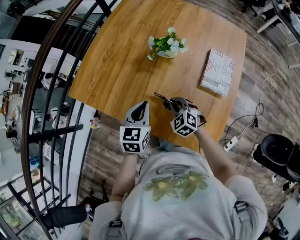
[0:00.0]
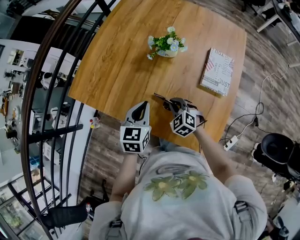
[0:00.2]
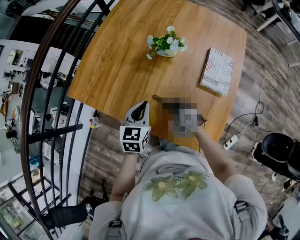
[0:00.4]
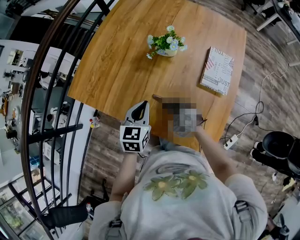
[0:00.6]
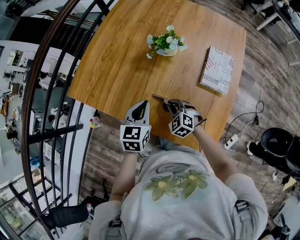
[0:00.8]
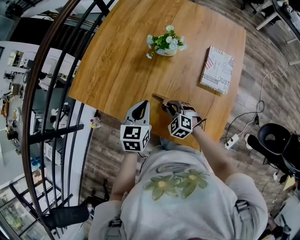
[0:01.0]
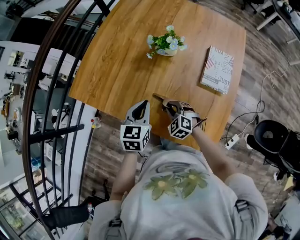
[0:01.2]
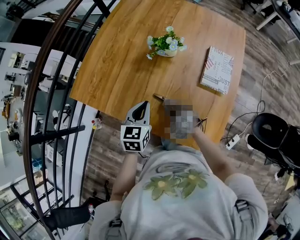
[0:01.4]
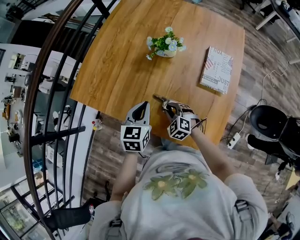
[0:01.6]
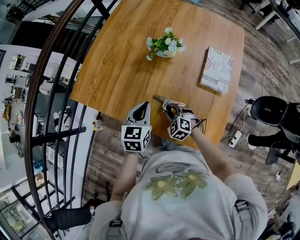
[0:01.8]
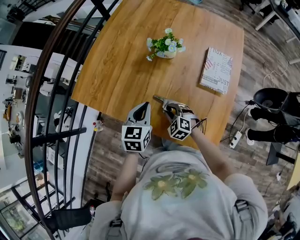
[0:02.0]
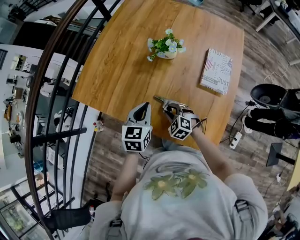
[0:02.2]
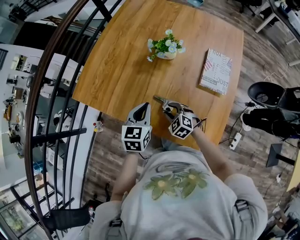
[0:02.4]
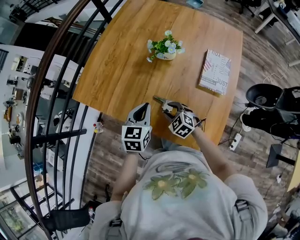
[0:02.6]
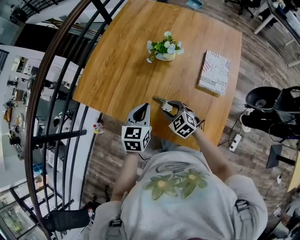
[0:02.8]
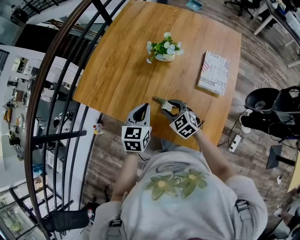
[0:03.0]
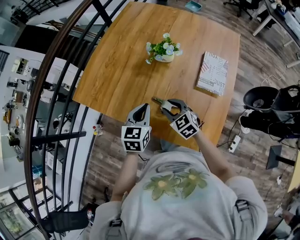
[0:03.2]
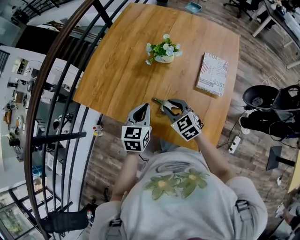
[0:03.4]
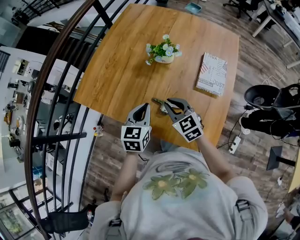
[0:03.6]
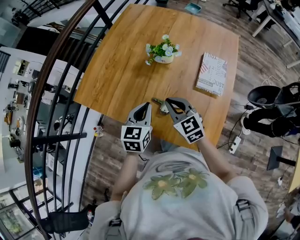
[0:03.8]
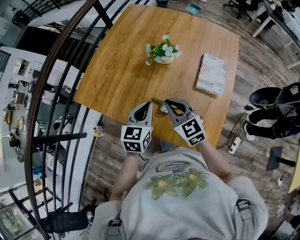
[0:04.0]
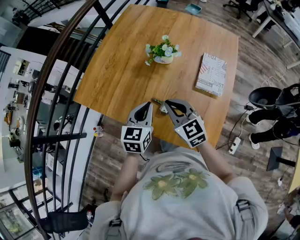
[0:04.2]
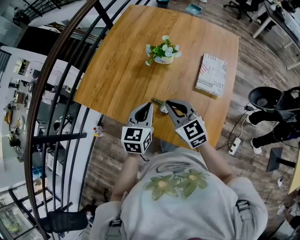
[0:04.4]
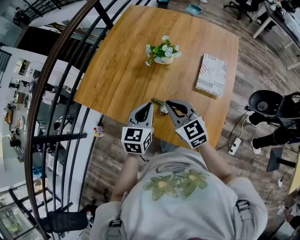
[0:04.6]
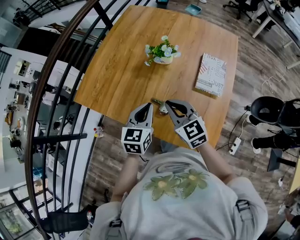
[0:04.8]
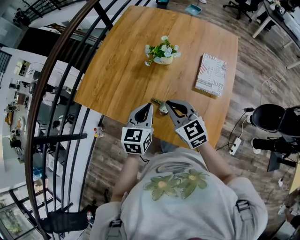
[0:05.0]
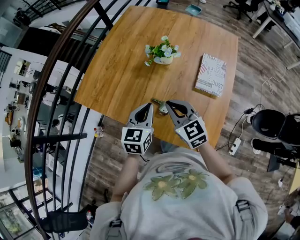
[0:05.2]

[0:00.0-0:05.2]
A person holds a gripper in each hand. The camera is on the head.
0:00.0 to 0:01.8: The right gripper shifts by about 5 cm, and opens up.
0:01.8 to 0:03.4: The right gripper moves upward, approximately 15 cm, and turns by about 30 degrees.
0:03.4 to 0:05.2: The right gripper shifts about 10 cm upward, and closes its fingers.

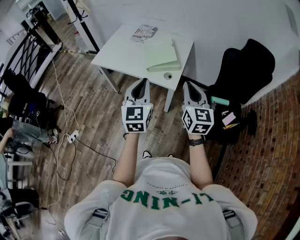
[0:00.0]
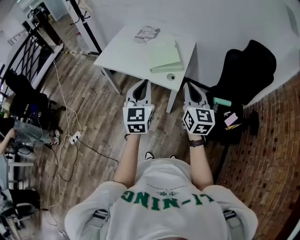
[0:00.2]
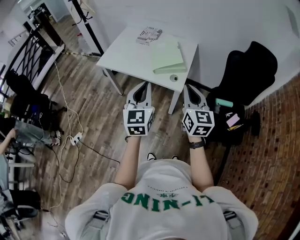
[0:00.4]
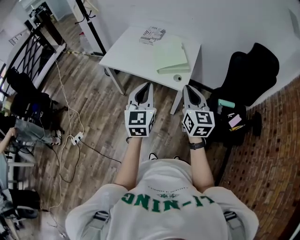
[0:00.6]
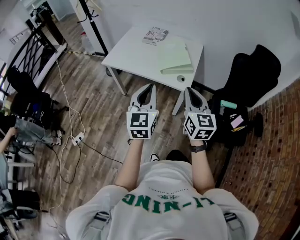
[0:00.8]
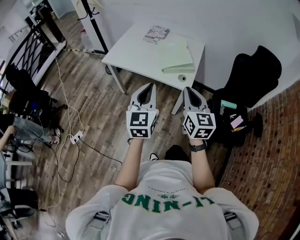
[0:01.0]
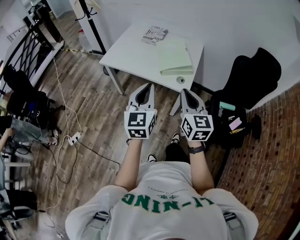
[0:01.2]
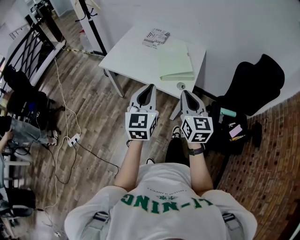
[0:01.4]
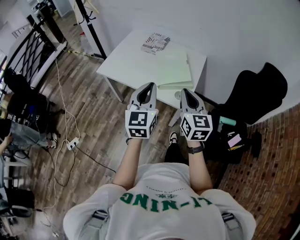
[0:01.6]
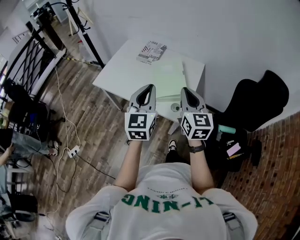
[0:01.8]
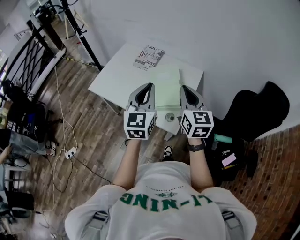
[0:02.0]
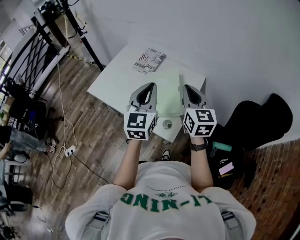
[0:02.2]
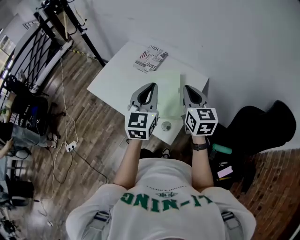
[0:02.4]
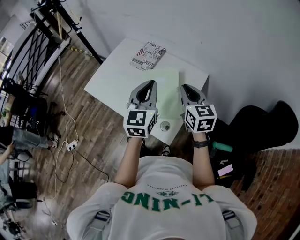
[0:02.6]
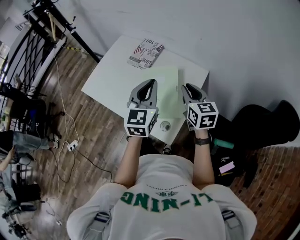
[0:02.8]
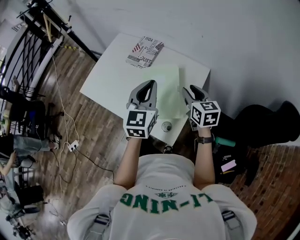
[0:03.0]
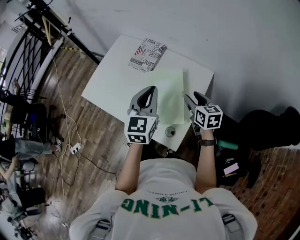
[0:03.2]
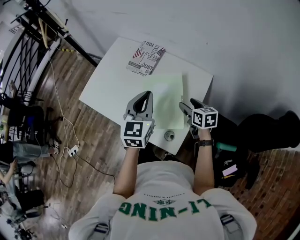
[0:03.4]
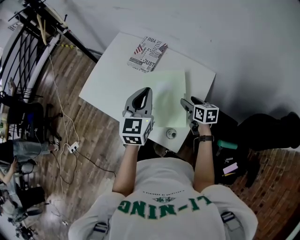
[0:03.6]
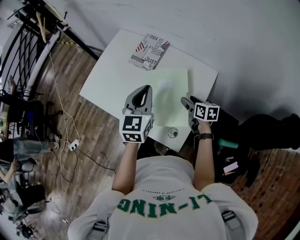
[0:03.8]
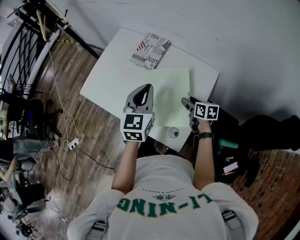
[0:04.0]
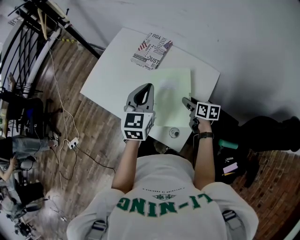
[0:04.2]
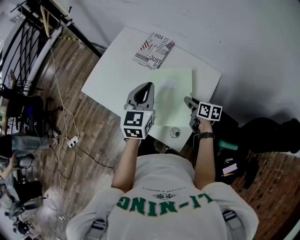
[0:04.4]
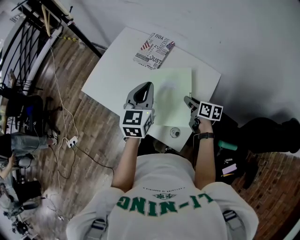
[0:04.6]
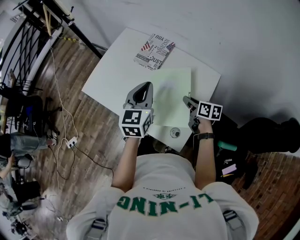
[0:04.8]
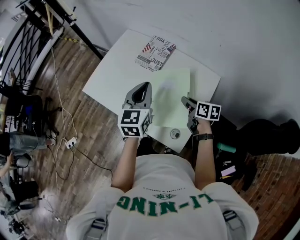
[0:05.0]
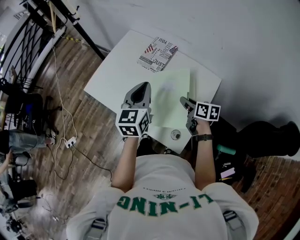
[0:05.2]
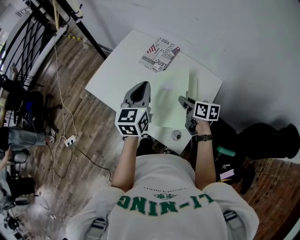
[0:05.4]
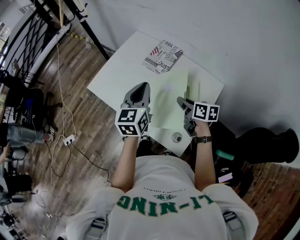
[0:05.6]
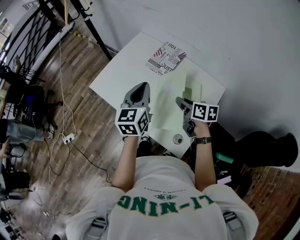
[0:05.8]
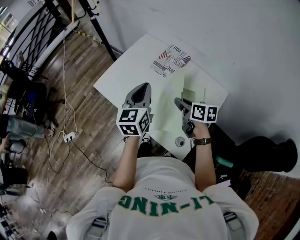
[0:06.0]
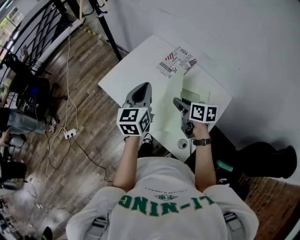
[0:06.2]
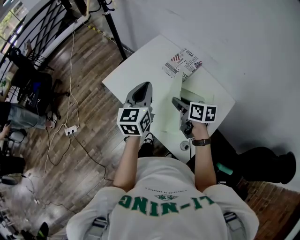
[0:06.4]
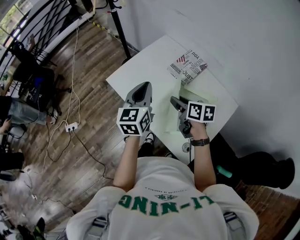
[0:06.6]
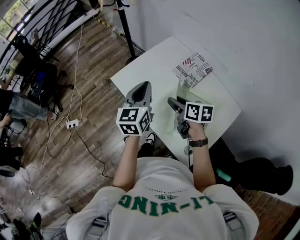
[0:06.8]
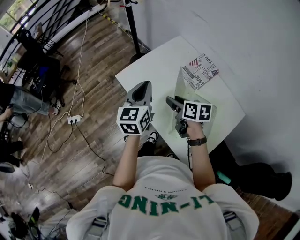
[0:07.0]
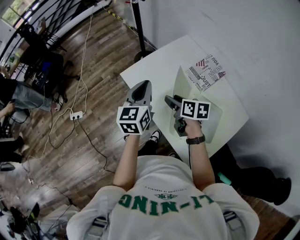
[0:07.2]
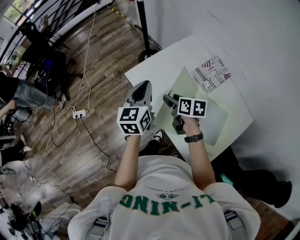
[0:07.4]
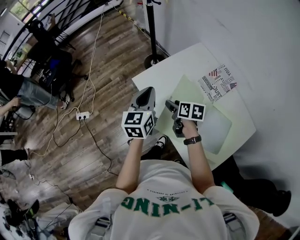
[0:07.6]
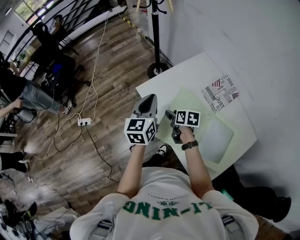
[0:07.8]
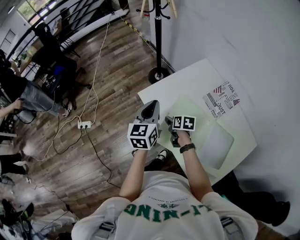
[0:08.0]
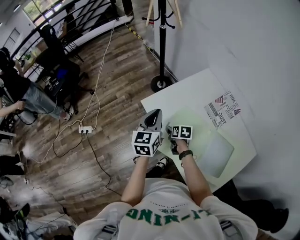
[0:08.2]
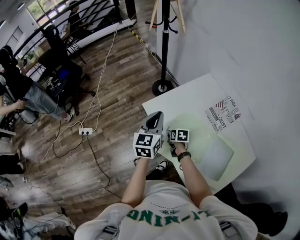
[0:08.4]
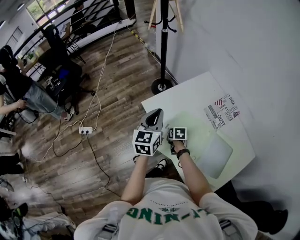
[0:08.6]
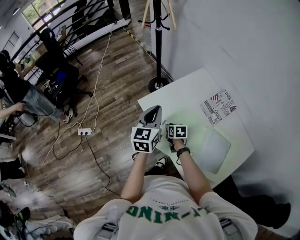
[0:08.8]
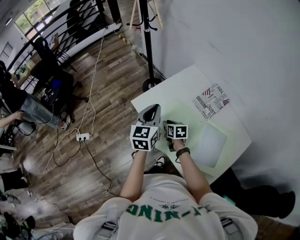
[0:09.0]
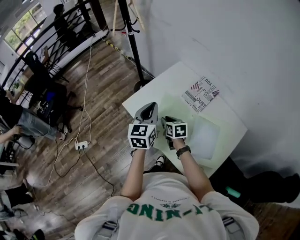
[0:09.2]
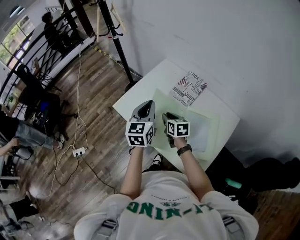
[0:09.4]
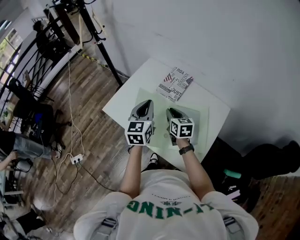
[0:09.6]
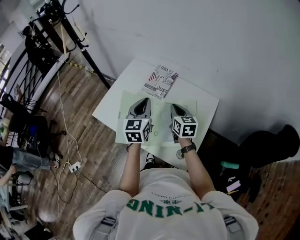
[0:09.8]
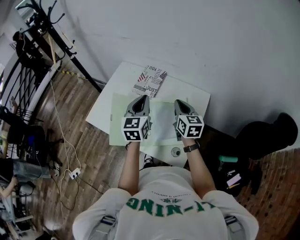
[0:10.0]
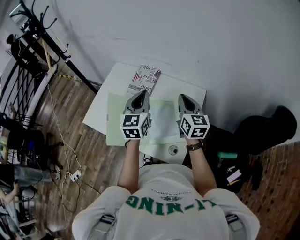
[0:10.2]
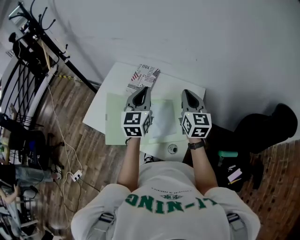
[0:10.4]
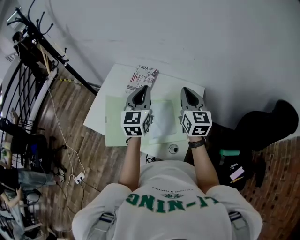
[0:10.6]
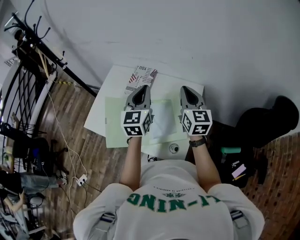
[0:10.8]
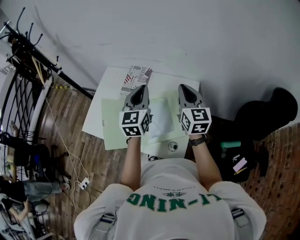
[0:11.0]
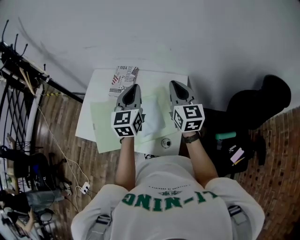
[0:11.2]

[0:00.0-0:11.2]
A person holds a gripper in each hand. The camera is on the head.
0:00.0 to 0:01.6: The two grippers go about 15 cm forward and to the left.
0:01.6 to 0:03.2: The right gripper moves forward, to the right and downward, some 40 cm, changes its angle by approximately 30 degrees, and opens its fingers. The left gripper shifts about 35 cm forward and to the right.
0:03.2 to 0:04.8: The left gripper shifts roughly 10 cm to the left and forward, while the right gripper is displaced downward and to the left by approximately 10 cm, turns by roughly 30 degrees, and closes.
0:04.8 to 0:06.4: The left gripper goes roughly 15 cm to the left; the right gripper goes roughly 20 cm to the left and upward.
0:06.4 to 0:08.0: The left gripper heads to the left, forward and downward, covering approximately 20 cm, while the right gripper travels to the left, downward and forward by some 30 cm, and turns by some 20 degrees.
0:08.0 to 0:09.6: The left gripper shifts by some 25 cm, and turns by roughly 20 degrees. Meanwhile the right gripper changes place by roughly 30 cm, turns by roughly 40 degrees, and closes up.
0:09.6 to 0:11.2: The right gripper moves to the right and upward, approximately 35 cm, and turns by about 40 degrees; the left gripper heads to the right, covering about 25 cm, and swivels roughly 20 degrees.

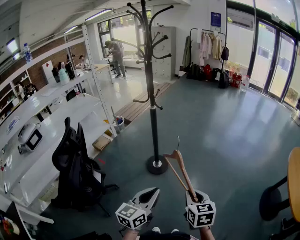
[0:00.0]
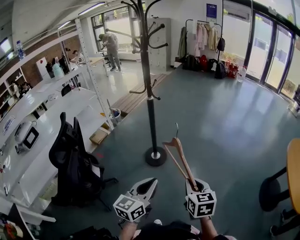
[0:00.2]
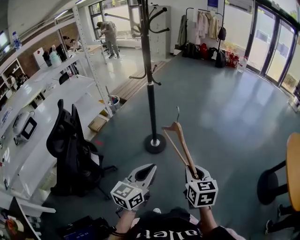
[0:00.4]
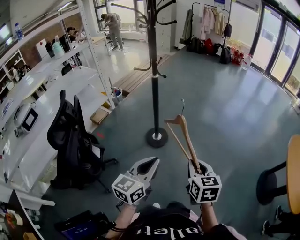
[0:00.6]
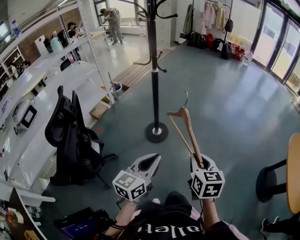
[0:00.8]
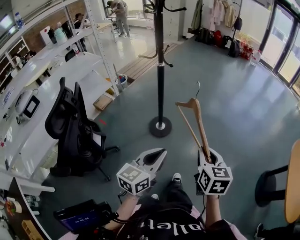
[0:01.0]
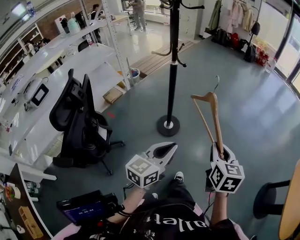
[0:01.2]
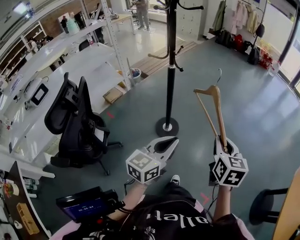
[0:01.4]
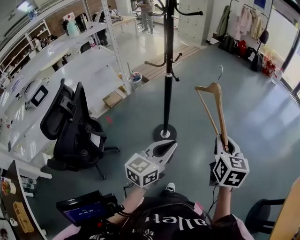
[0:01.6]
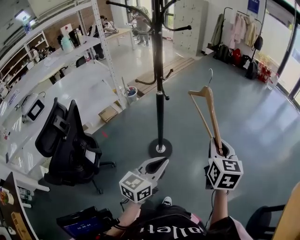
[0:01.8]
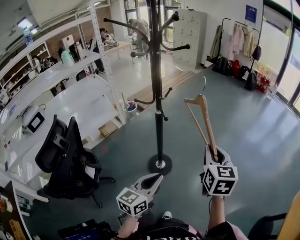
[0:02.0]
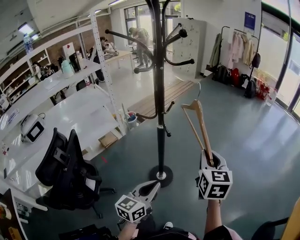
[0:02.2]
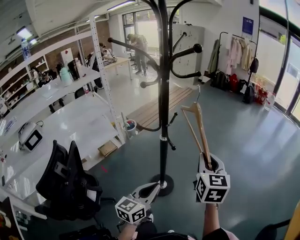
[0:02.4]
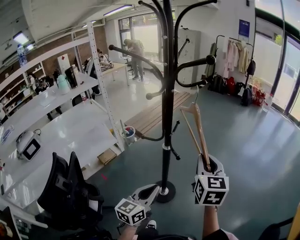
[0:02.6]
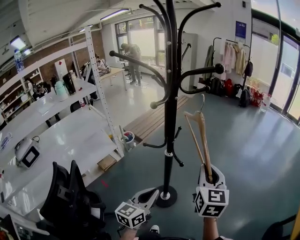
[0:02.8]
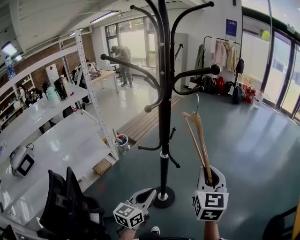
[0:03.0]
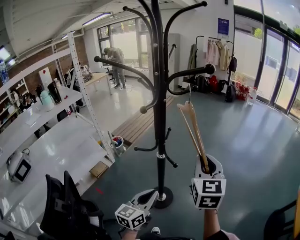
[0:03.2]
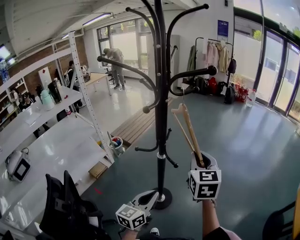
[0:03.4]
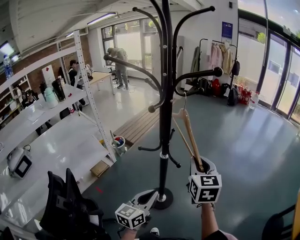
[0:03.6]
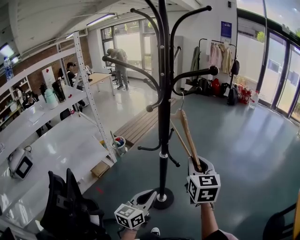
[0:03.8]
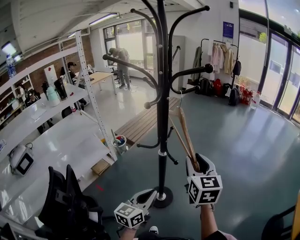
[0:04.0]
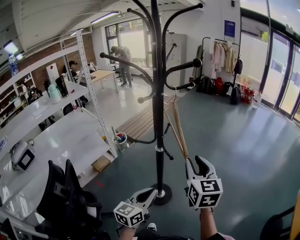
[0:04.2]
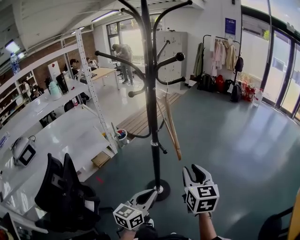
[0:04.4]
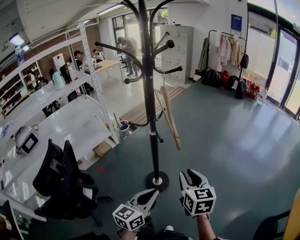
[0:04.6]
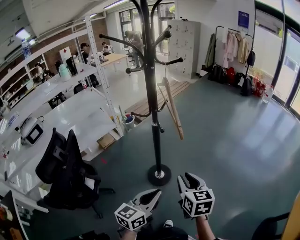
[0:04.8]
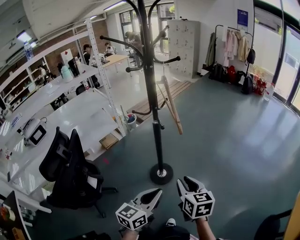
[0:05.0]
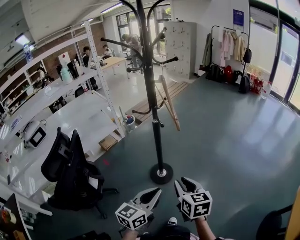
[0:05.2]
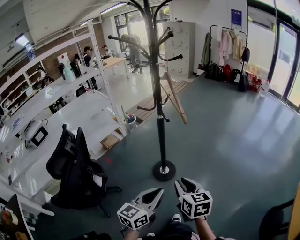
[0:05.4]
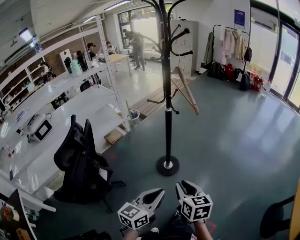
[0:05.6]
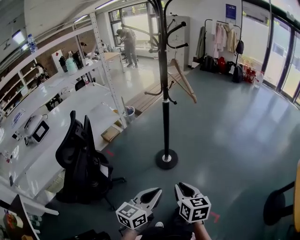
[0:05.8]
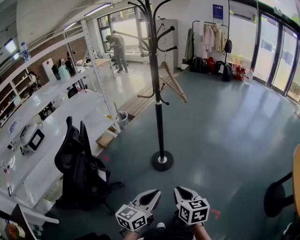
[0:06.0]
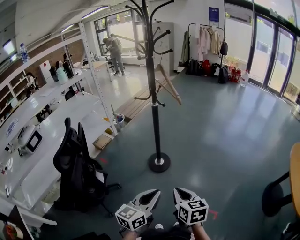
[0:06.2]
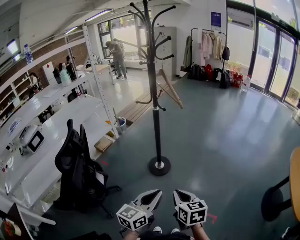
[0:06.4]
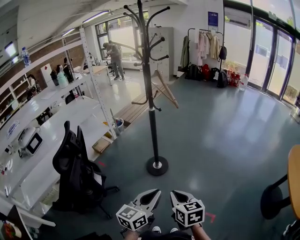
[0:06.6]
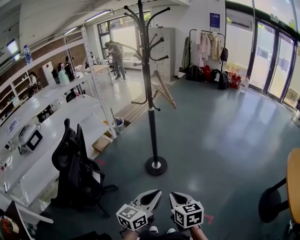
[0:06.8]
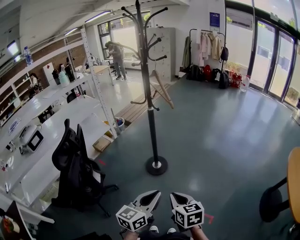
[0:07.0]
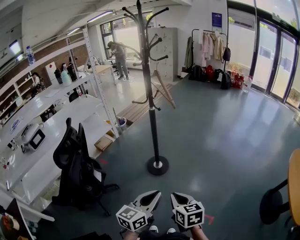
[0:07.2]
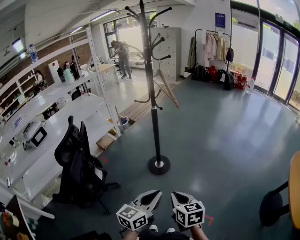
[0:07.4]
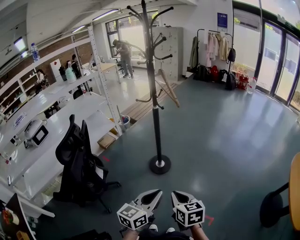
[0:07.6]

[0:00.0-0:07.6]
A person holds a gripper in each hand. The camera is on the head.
0:00.0 to 0:01.6: Both grippers travel together forward, some 25 cm.
0:01.6 to 0:03.0: The left gripper moves to the left and forward, about 25 cm; the right gripper goes about 25 cm to the left, forward and upward.
0:03.0 to 0:04.6: The right gripper travels downward, backward and to the right by roughly 15 cm, and rotates some 30 degrees. The left gripper travels to the right and backward by about 20 cm.
0:04.6 to 0:06.0: Both grippers travel together backward, some 30 cm.
0:06.0 to 0:07.6: Both grippers travel together to the right, roughly 5 cm.
